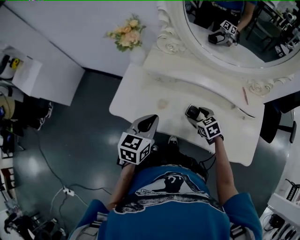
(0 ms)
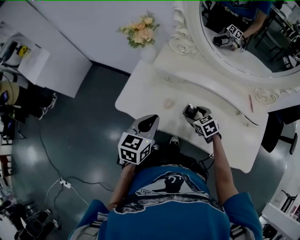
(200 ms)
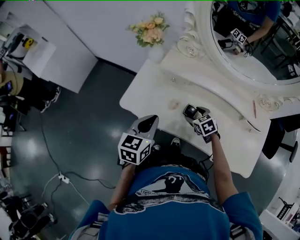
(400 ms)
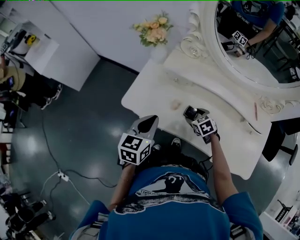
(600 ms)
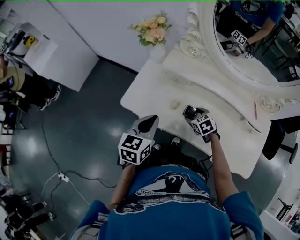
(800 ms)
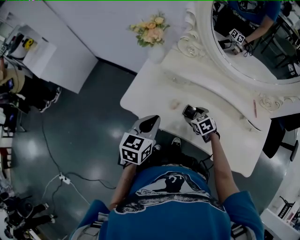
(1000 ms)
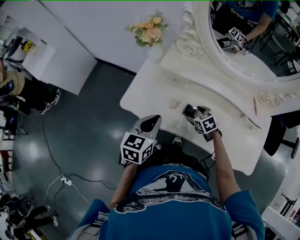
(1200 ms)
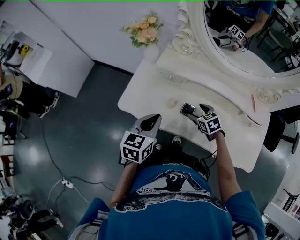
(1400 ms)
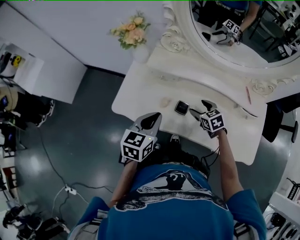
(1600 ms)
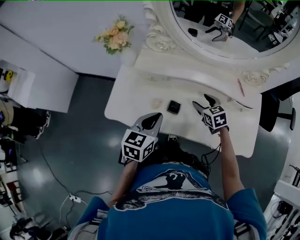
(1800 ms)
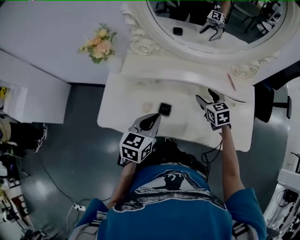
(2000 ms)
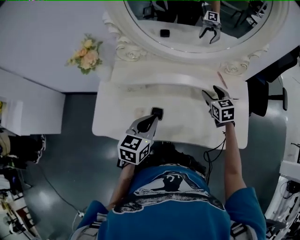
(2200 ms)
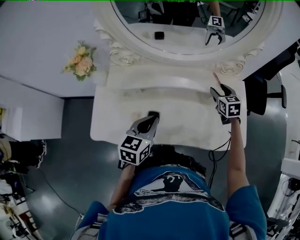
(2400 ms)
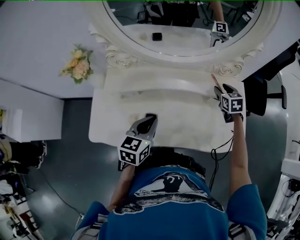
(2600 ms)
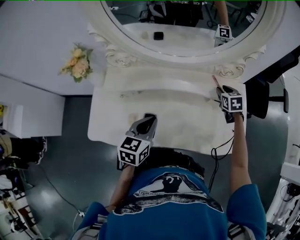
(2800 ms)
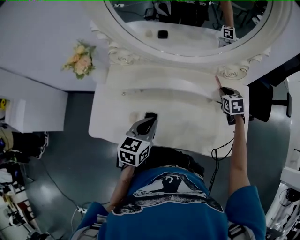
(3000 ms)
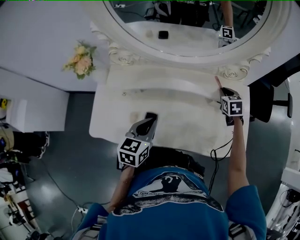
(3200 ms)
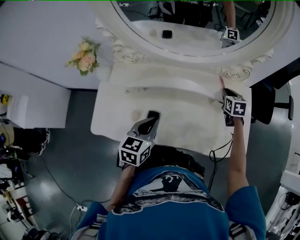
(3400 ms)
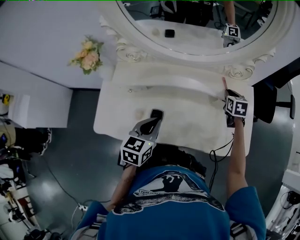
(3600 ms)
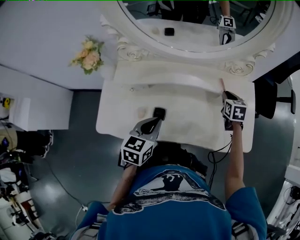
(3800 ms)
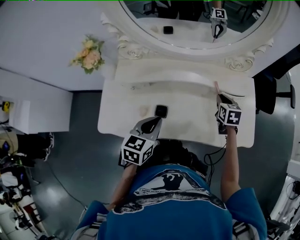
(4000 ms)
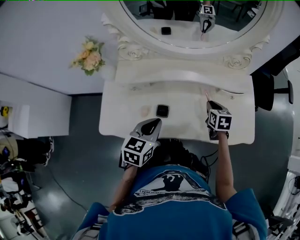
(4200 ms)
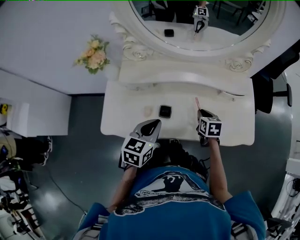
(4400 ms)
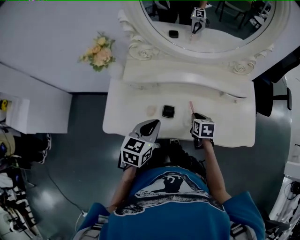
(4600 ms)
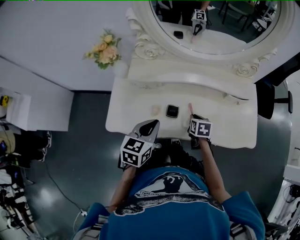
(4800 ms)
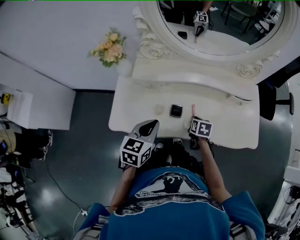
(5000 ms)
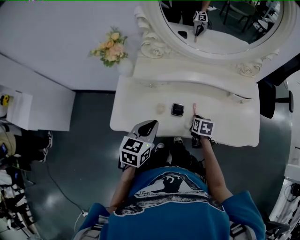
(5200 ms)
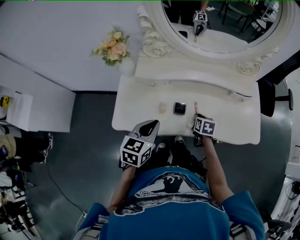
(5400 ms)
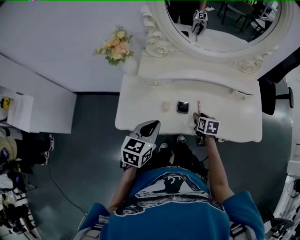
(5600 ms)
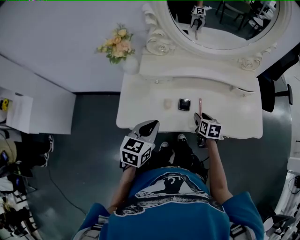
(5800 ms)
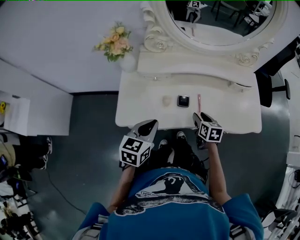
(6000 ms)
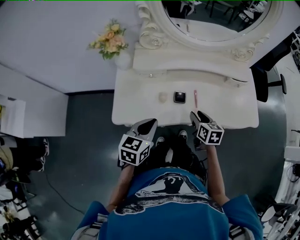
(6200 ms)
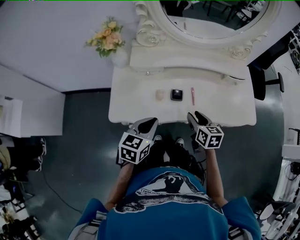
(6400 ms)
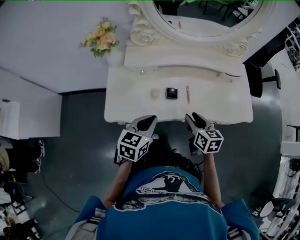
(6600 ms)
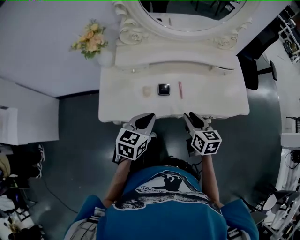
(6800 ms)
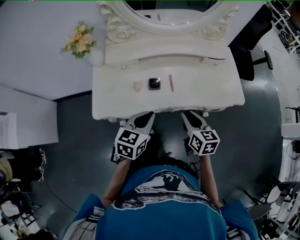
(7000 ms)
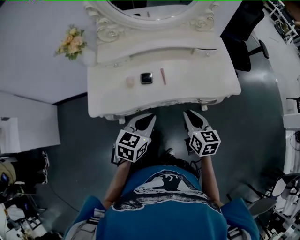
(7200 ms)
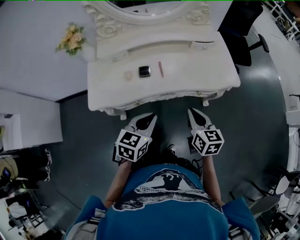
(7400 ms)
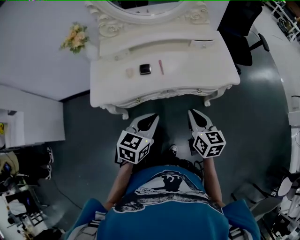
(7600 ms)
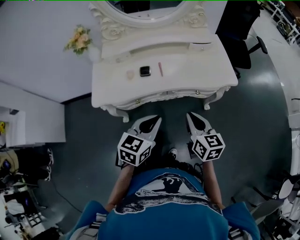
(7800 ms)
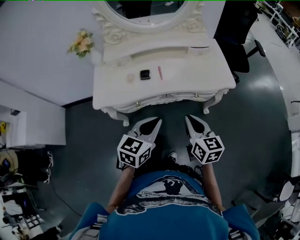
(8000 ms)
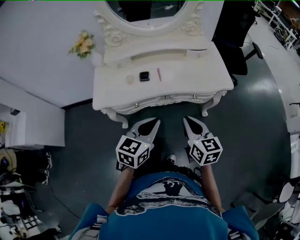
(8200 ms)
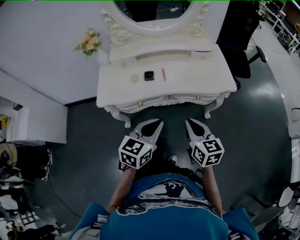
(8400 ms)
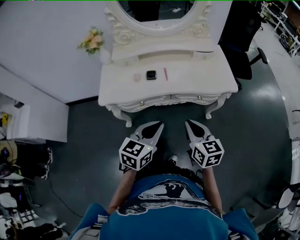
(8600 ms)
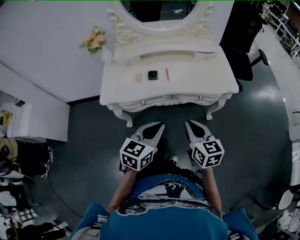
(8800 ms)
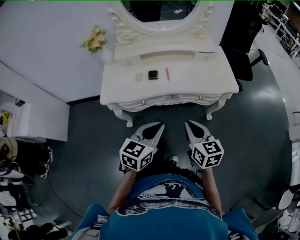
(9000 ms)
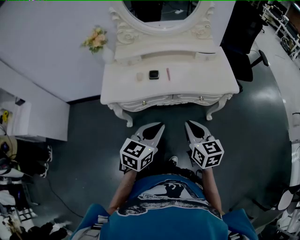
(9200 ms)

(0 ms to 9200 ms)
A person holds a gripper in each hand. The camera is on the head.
1600 ms - 3000 ms: The right gripper shifts by some 35 cm, rotates approximately 30 degrees, and closes up. The left gripper moves roughly 15 cm.
3000 ms - 4600 ms: The right gripper shifts roughly 30 cm backward and to the left, and turns by about 20 degrees. The left gripper is displaced backward and to the left by approximately 10 cm.
4600 ms - 6200 ms: The left gripper heads to the left and backward, covering approximately 10 cm, while the right gripper heads backward and to the left, covering about 10 cm, and opens up.
6200 ms - 7600 ms: The right gripper moves backward, to the right and upward, some 25 cm, and closes up. The left gripper goes roughly 20 cm to the right and backward.
7600 ms - 9200 ms: The grippers both shift backward by some 10 cm.

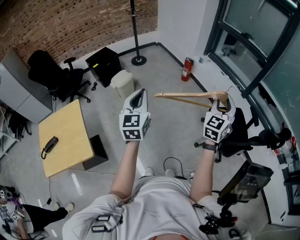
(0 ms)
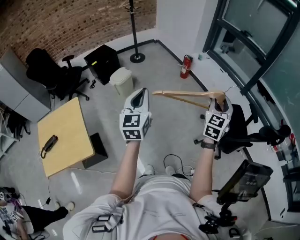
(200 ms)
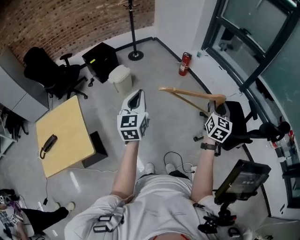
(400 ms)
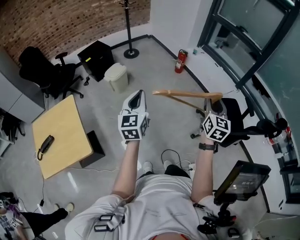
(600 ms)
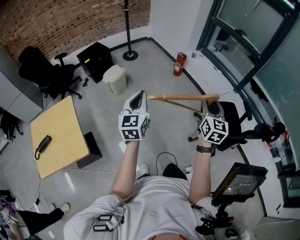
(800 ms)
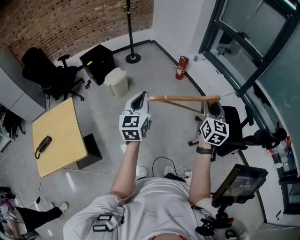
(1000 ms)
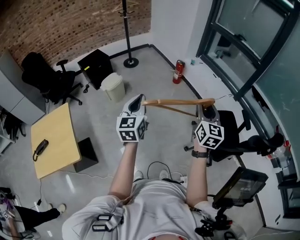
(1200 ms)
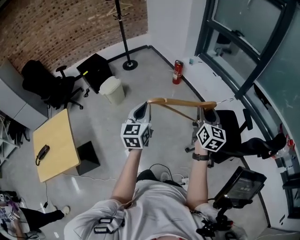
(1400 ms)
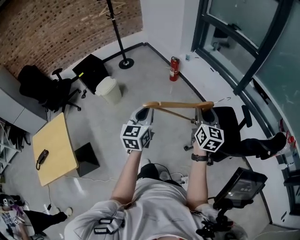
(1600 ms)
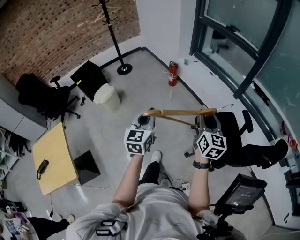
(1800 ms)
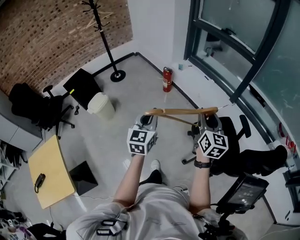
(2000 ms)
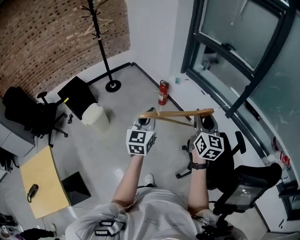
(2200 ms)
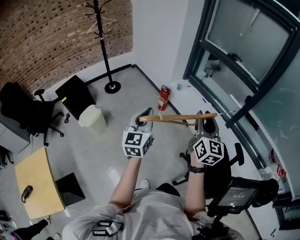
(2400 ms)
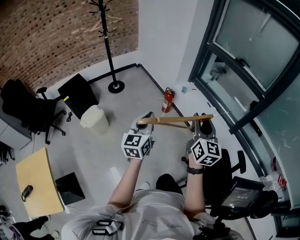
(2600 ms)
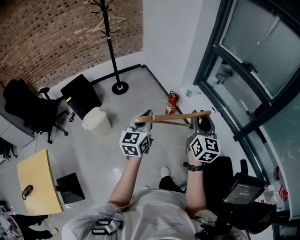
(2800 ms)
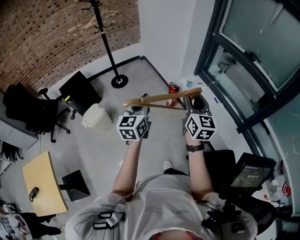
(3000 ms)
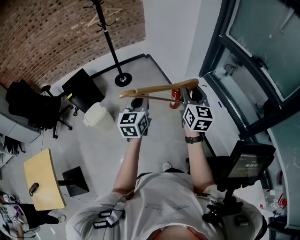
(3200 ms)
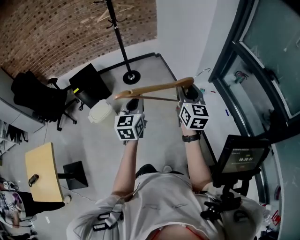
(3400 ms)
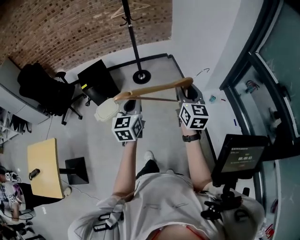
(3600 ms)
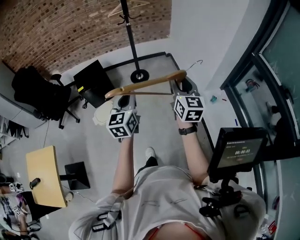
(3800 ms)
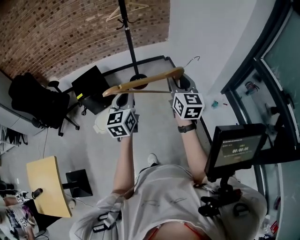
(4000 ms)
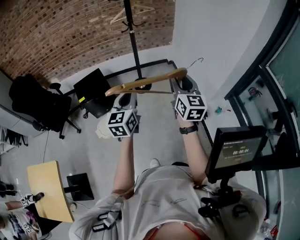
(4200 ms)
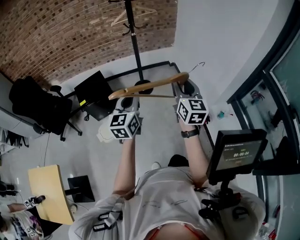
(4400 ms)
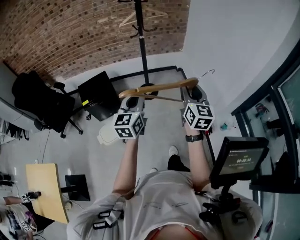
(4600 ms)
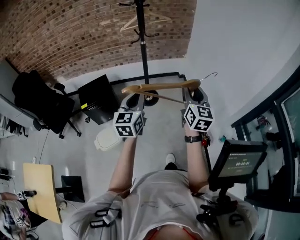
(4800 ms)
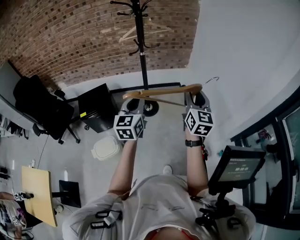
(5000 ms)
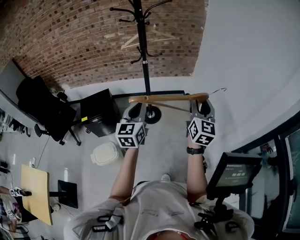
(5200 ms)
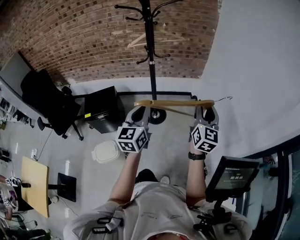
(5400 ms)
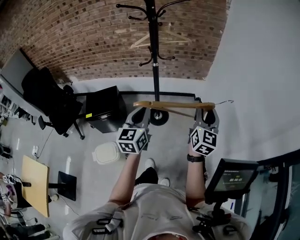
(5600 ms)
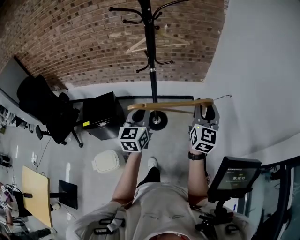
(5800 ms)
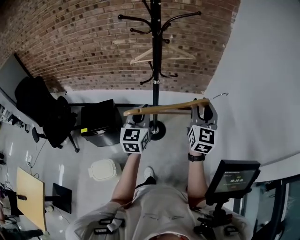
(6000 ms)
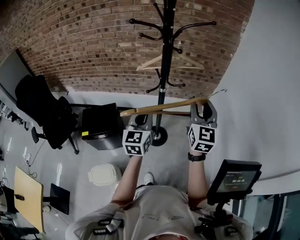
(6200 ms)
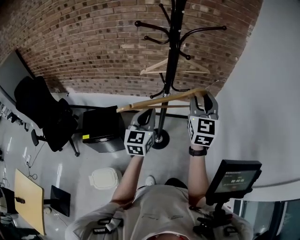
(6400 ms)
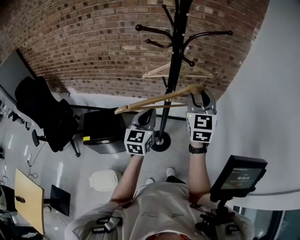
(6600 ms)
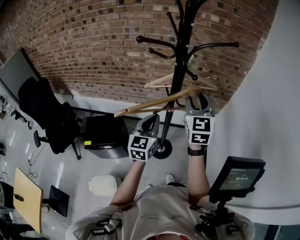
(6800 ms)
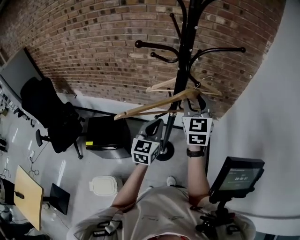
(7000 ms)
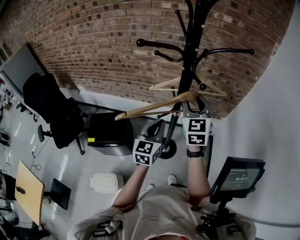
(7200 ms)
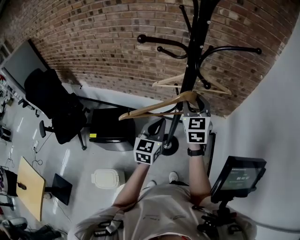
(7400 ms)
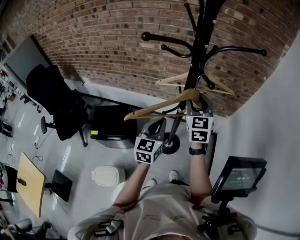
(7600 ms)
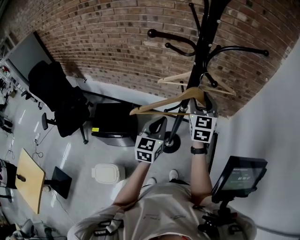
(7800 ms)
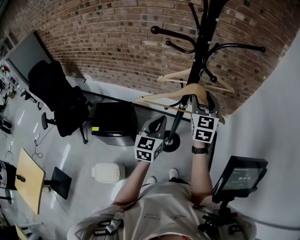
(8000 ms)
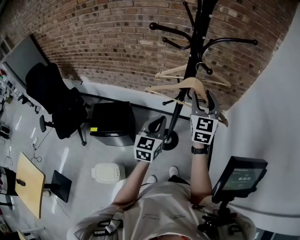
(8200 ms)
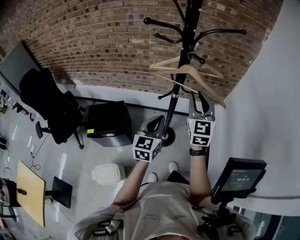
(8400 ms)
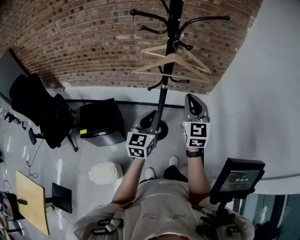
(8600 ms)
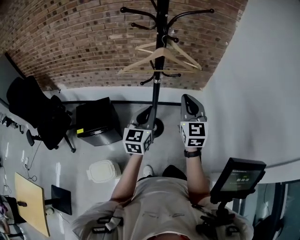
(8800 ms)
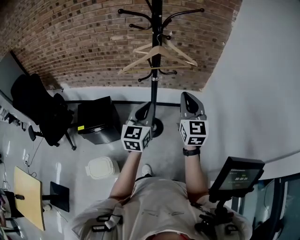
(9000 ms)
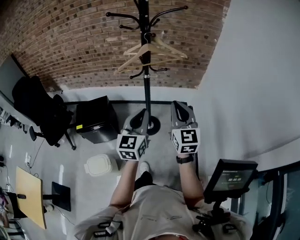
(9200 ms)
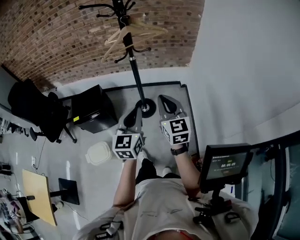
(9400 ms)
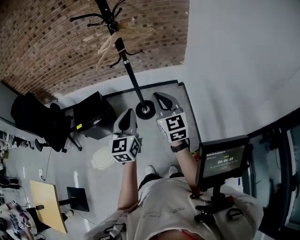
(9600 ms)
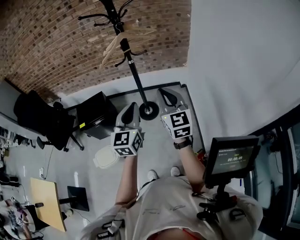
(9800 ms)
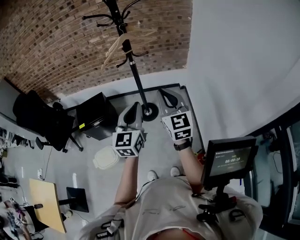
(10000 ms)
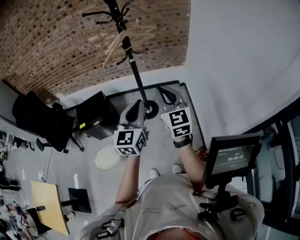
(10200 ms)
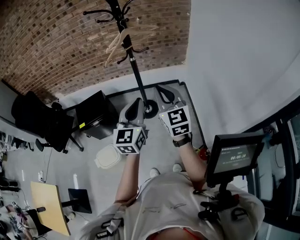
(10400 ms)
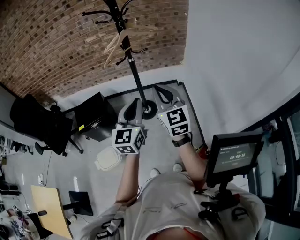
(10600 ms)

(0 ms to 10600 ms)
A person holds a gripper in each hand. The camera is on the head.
0 ms - 1600 ms: The left gripper heads to the right and forward, covering approximately 25 cm, while the right gripper goes approximately 15 cm to the right, forward and downward, and rotates roughly 40 degrees.
1600 ms - 3000 ms: The pair of grippers is taken forward, approximately 50 cm.
3000 ms - 4600 ms: The two grippers travel together, forward and to the left, approximately 50 cm.
4600 ms - 6000 ms: The two grippers go roughly 35 cm forward.
6000 ms - 7600 ms: The right gripper heads forward and to the left, covering about 30 cm, and changes its angle by approximately 20 degrees, while the left gripper heads forward, covering about 15 cm.
7600 ms - 9000 ms: The right gripper travels backward and to the right by roughly 25 cm, and closes up, while the left gripper goes some 15 cm backward.
9000 ms - 10600 ms: Both grippers move backward, some 20 cm.

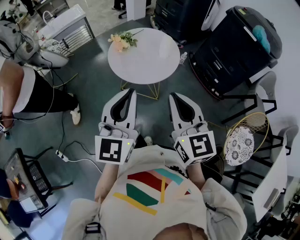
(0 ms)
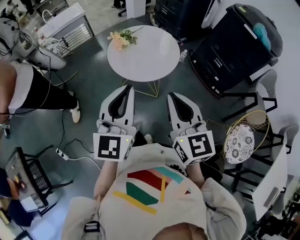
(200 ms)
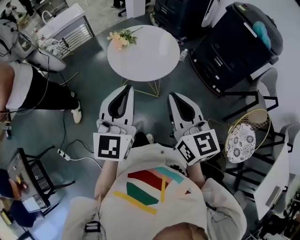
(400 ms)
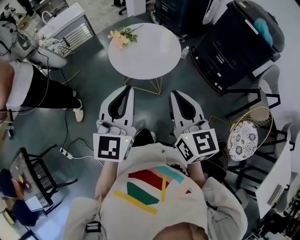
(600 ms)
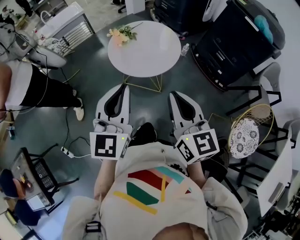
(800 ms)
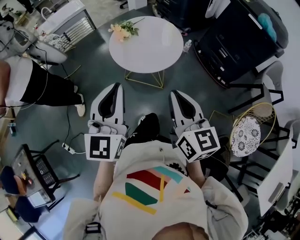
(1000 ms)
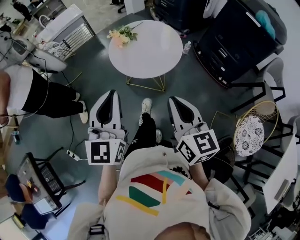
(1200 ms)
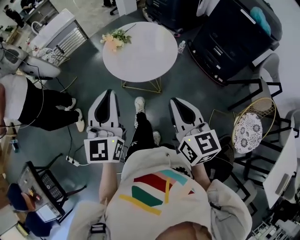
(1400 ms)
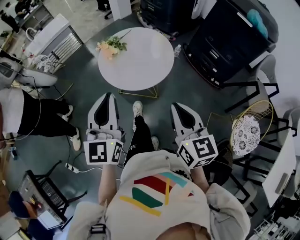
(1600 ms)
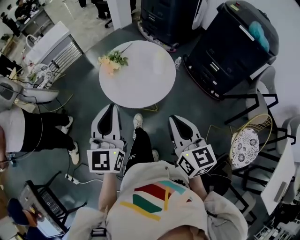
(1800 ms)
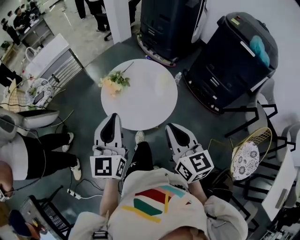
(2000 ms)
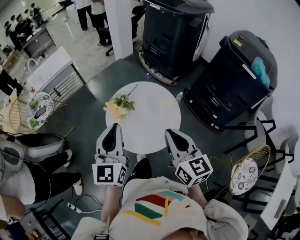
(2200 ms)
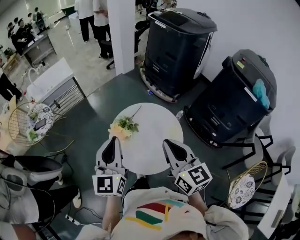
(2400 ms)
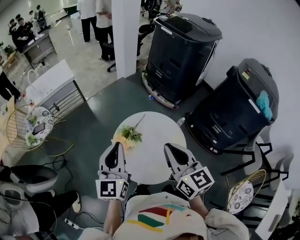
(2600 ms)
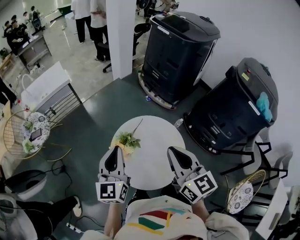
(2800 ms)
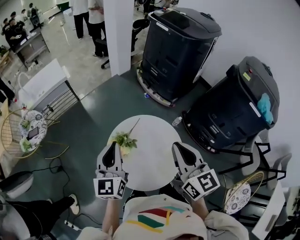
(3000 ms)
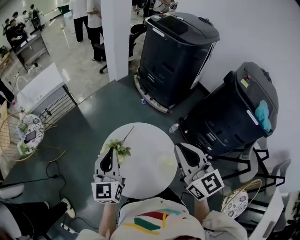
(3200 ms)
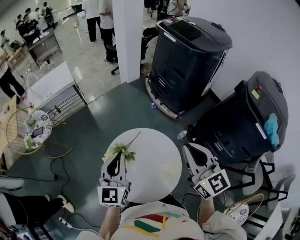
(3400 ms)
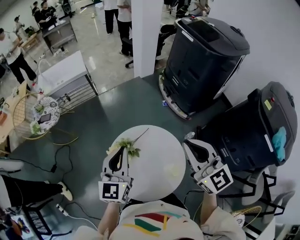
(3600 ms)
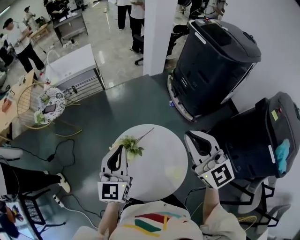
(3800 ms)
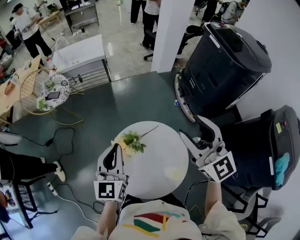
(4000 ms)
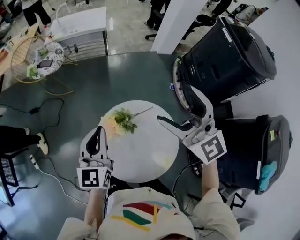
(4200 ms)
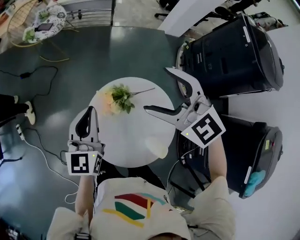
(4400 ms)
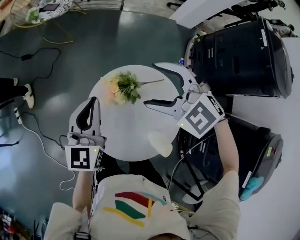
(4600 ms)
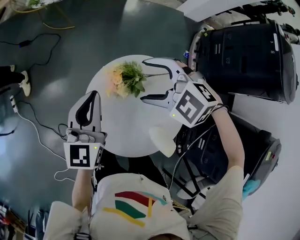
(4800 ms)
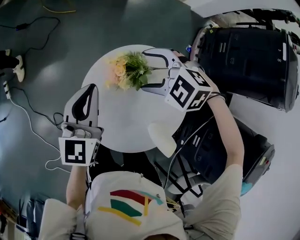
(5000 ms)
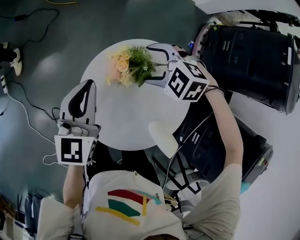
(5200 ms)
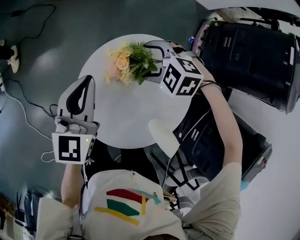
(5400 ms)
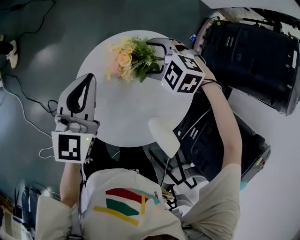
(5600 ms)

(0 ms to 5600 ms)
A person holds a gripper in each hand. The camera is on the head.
0 ms - 1400 ms: The right gripper moves approximately 5 cm; the left gripper shifts some 5 cm to the left.
1400 ms - 2800 ms: The two grippers go some 40 cm forward.
2800 ms - 4200 ms: The right gripper ends up roughly 20 cm from where it was, rotates some 60 degrees, and opens; the left gripper swivels about 30 degrees.
4200 ms - 5600 ms: The right gripper is displaced downward by approximately 40 cm, and tips its fingers downward by roughly 70 degrees; the left gripper heads downward, covering some 20 cm.
